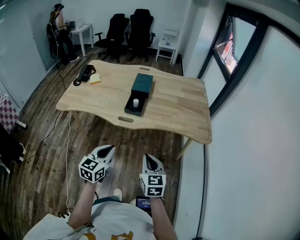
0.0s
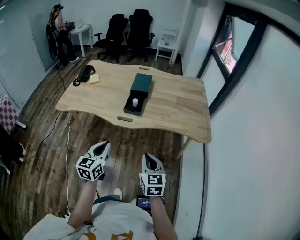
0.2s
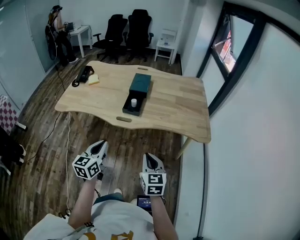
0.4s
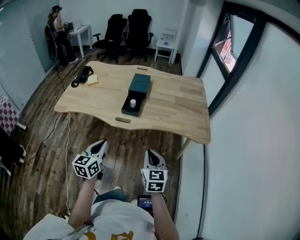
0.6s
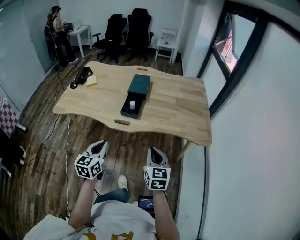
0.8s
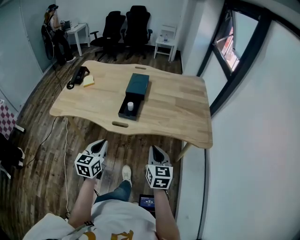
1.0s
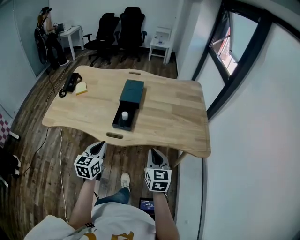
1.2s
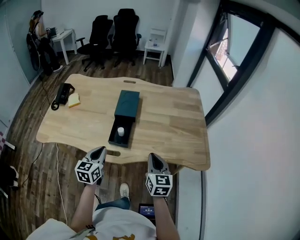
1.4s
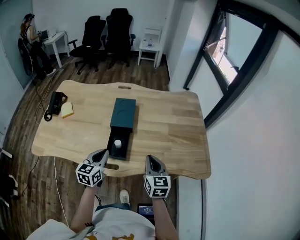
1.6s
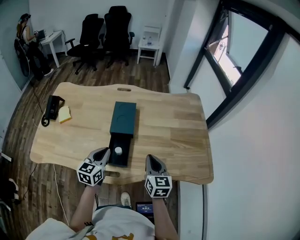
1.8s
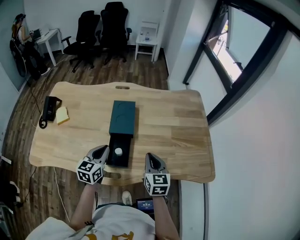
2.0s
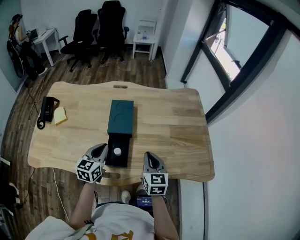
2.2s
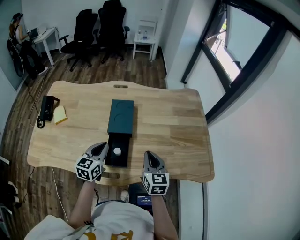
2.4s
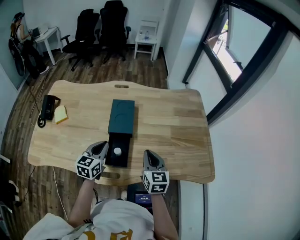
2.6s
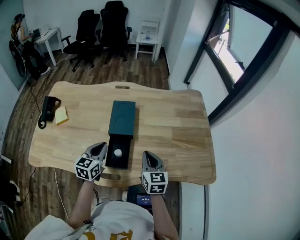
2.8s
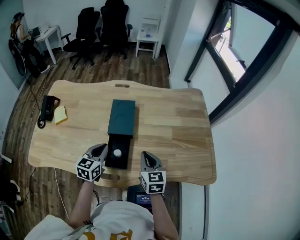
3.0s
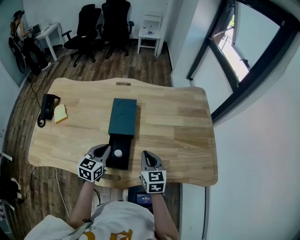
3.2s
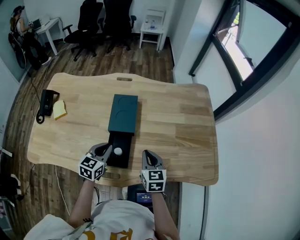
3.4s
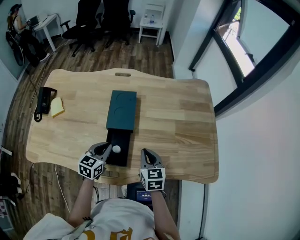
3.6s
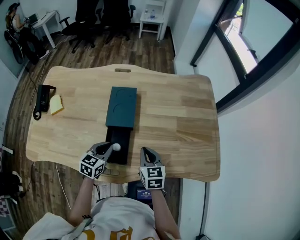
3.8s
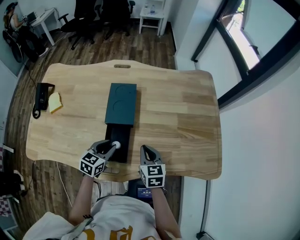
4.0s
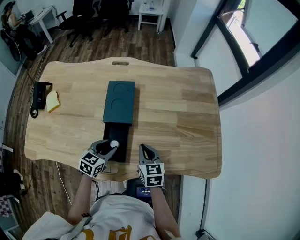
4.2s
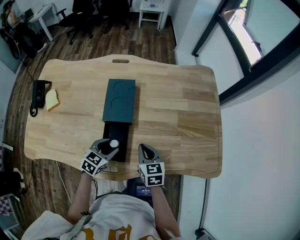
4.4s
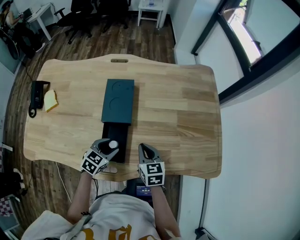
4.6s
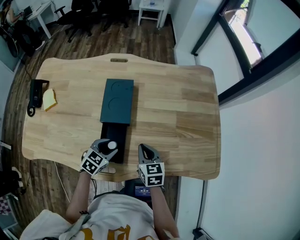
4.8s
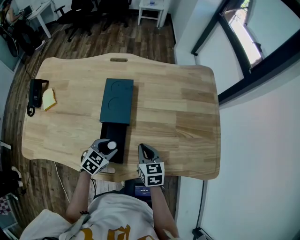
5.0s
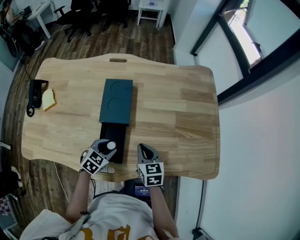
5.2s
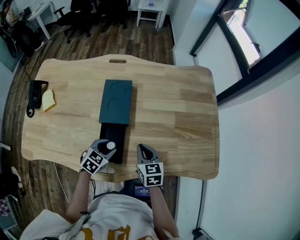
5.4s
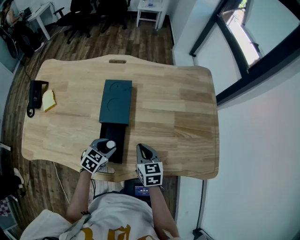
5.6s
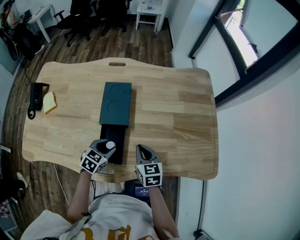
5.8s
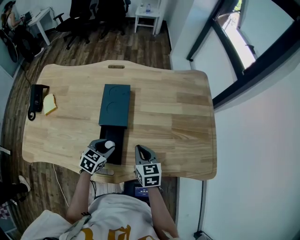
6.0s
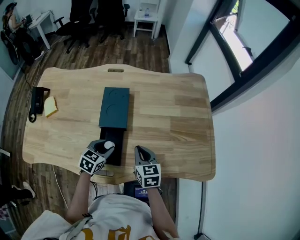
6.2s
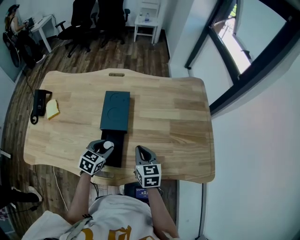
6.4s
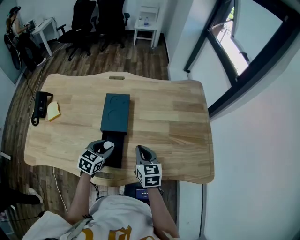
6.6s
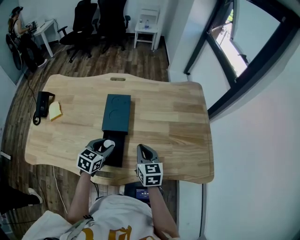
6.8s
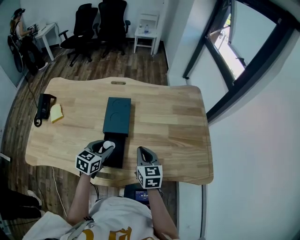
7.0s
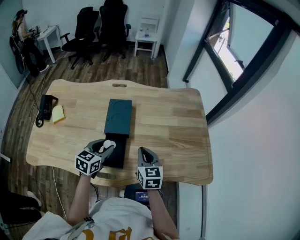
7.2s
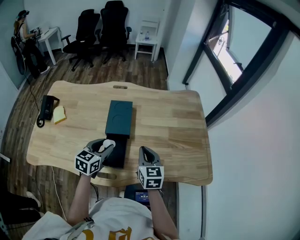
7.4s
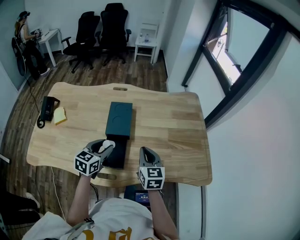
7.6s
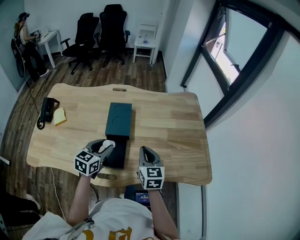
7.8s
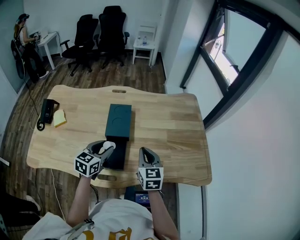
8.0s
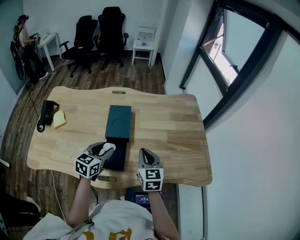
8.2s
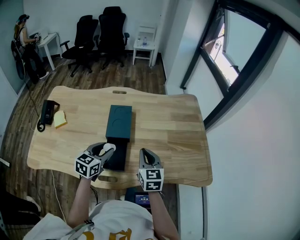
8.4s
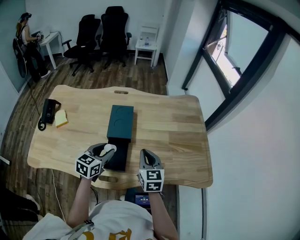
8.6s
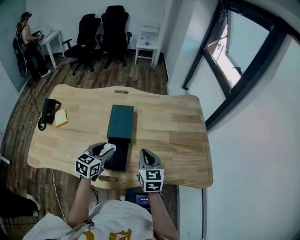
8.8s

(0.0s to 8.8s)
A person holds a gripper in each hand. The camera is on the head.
0.0s - 1.4s: Both grippers travel together forward, about 25 cm.
1.4s - 3.0s: Both grippers move forward, roughly 20 cm.
3.0s - 4.4s: The grippers both shift downward by roughly 10 cm. The left gripper changes its angle by approximately 30 degrees, and opens its fingers.
4.4s - 5.8s: The grippers stay close to where they were, moving slightly.
5.8s - 7.4s: Both grippers move upward, roughly 10 cm. The left gripper changes its angle by some 20 degrees.
7.4s - 8.8s: The grippers move only a little.

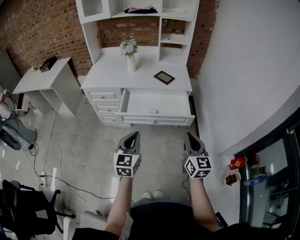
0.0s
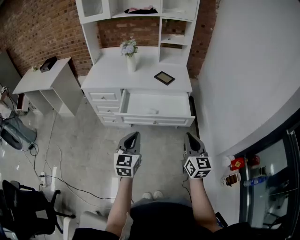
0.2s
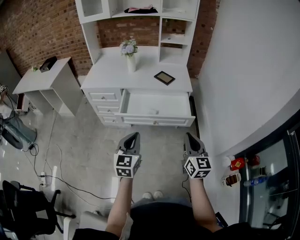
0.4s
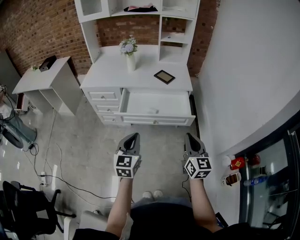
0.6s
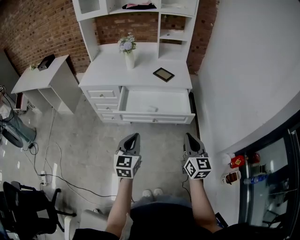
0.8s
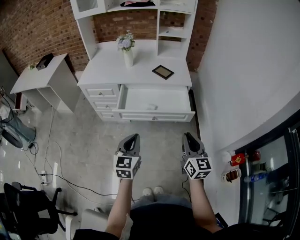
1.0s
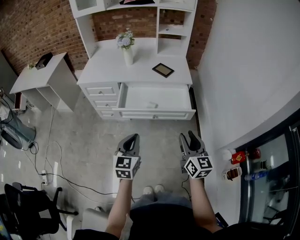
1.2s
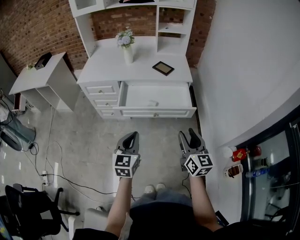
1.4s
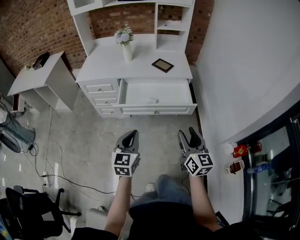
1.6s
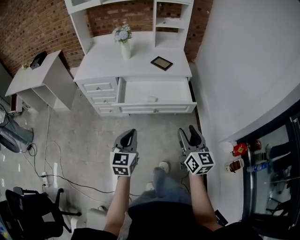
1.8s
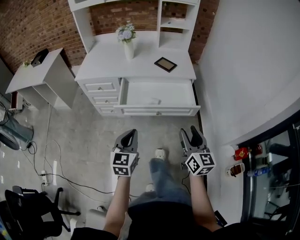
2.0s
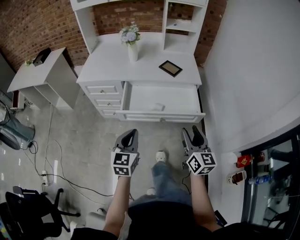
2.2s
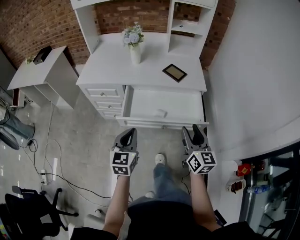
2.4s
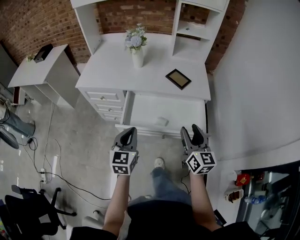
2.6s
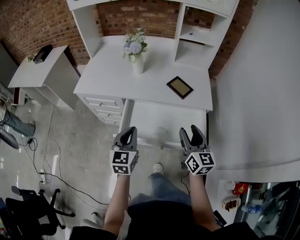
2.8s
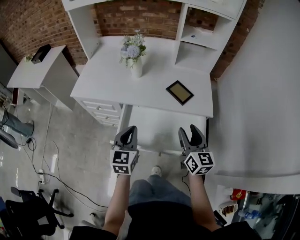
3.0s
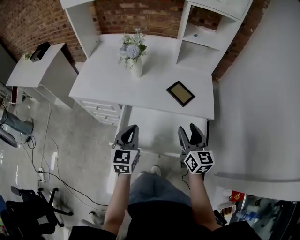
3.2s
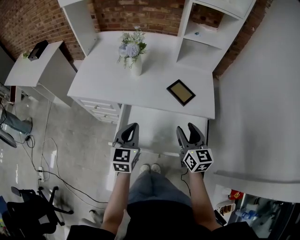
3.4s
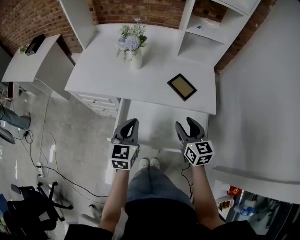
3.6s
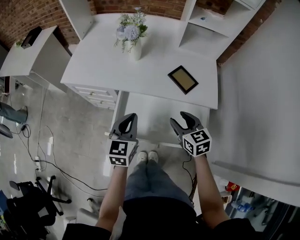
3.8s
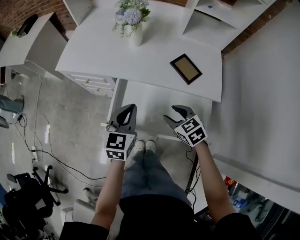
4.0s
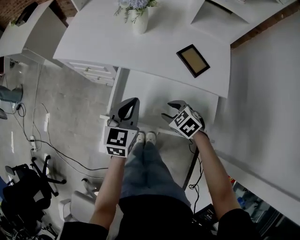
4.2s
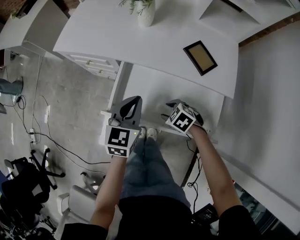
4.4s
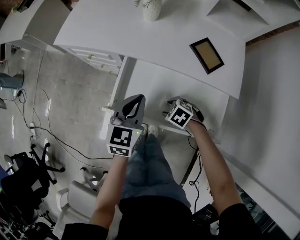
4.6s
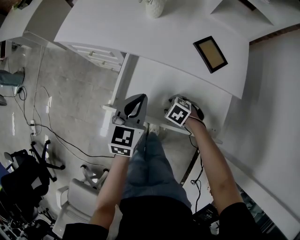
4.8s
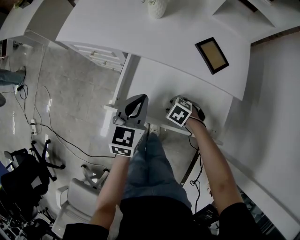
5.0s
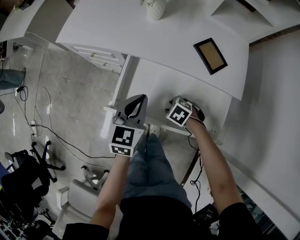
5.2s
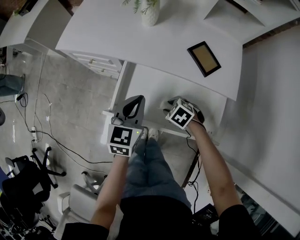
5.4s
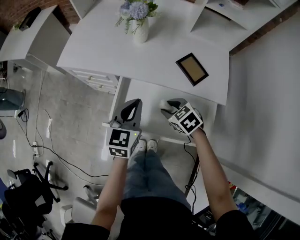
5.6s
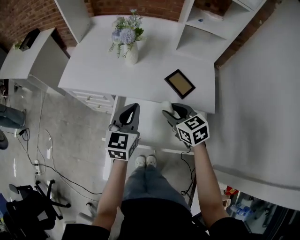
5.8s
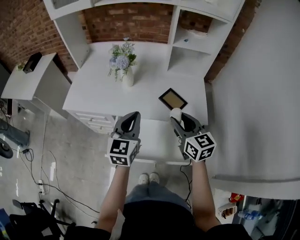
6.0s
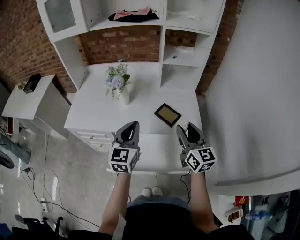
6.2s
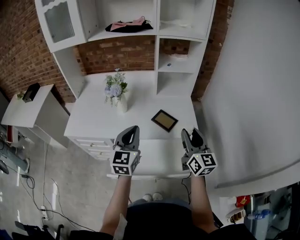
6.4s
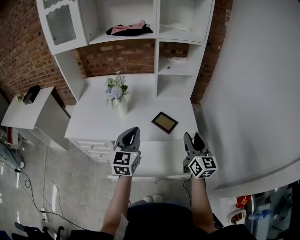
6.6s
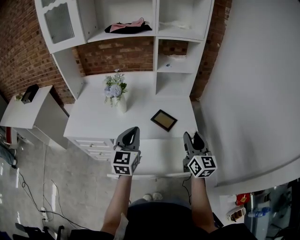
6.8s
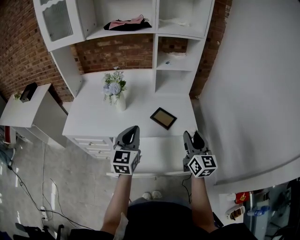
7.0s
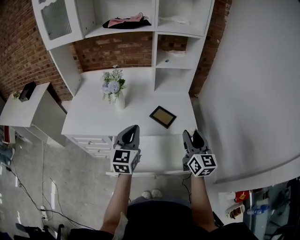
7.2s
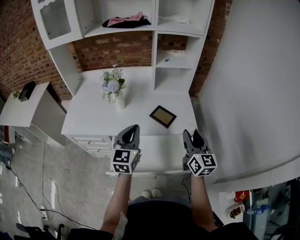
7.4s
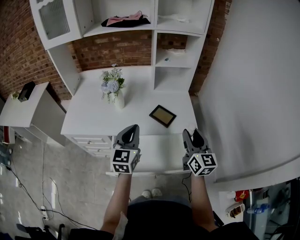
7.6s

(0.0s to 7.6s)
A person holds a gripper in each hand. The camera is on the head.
0.0s - 1.6s: The right gripper opens its fingers.
1.6s - 3.0s: The two grippers go about 35 cm forward.
3.0s - 4.6s: The right gripper heads downward, covering roughly 30 cm, and points its fingers about 60 degrees further downward. Meanwhile the left gripper heads downward, covering approximately 10 cm.
4.6s - 6.0s: The left gripper travels upward by approximately 15 cm; the right gripper shifts approximately 35 cm upward, and tips its fingers upward by approximately 60 degrees.
6.0s - 7.6s: The right gripper shifts approximately 10 cm to the right, and rotates roughly 30 degrees.

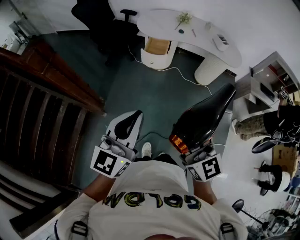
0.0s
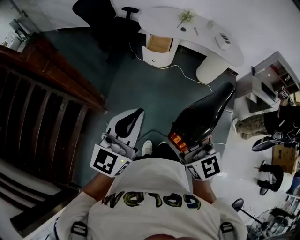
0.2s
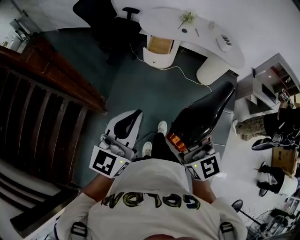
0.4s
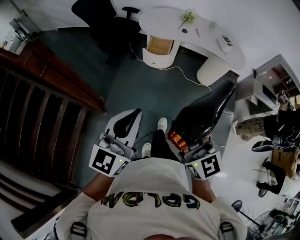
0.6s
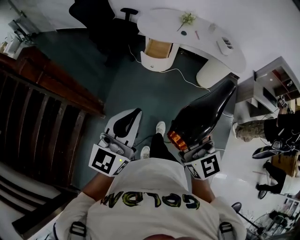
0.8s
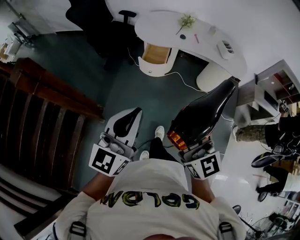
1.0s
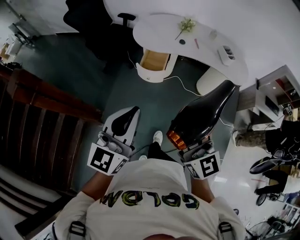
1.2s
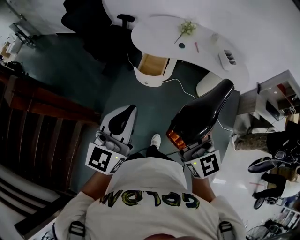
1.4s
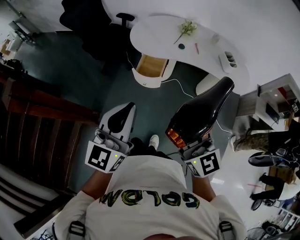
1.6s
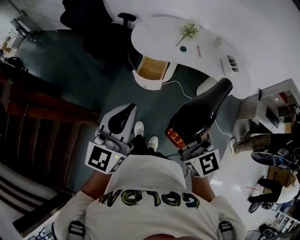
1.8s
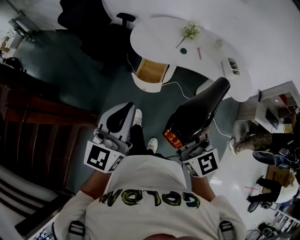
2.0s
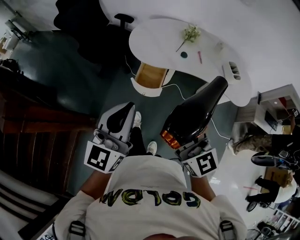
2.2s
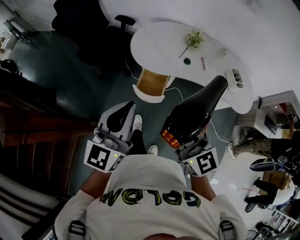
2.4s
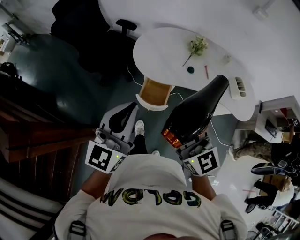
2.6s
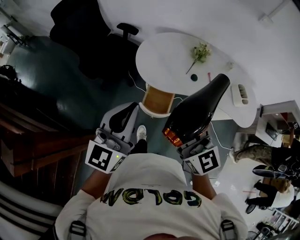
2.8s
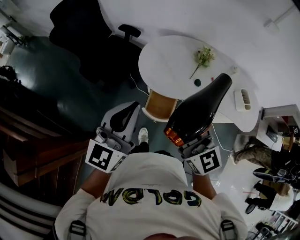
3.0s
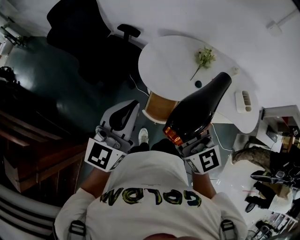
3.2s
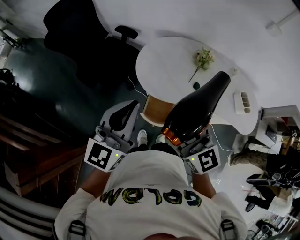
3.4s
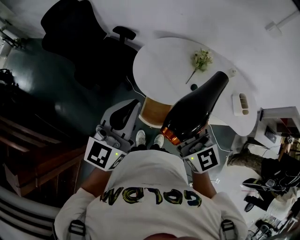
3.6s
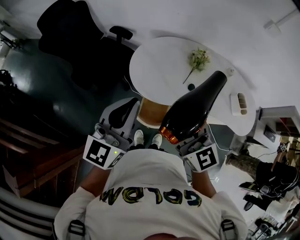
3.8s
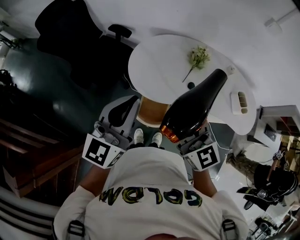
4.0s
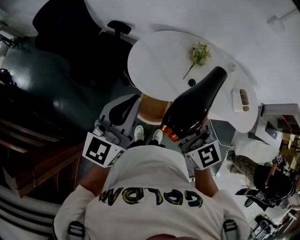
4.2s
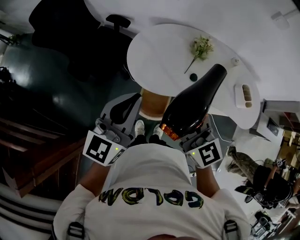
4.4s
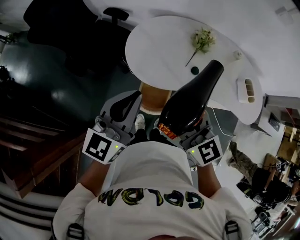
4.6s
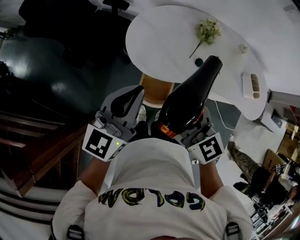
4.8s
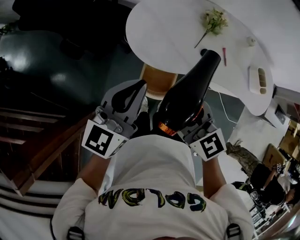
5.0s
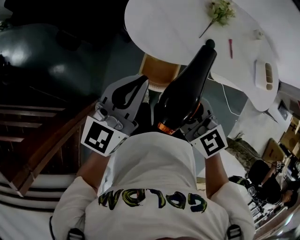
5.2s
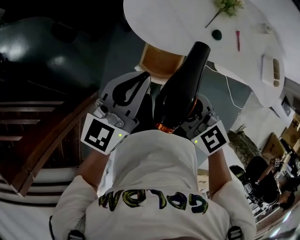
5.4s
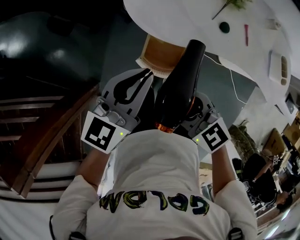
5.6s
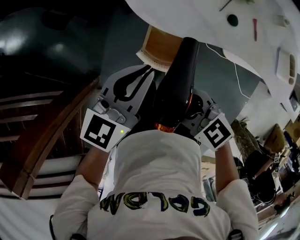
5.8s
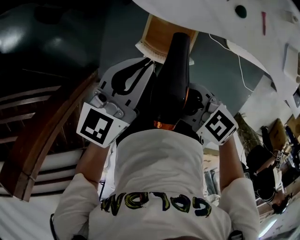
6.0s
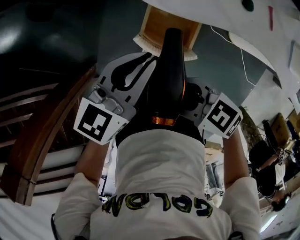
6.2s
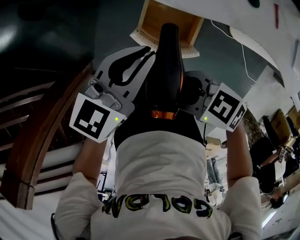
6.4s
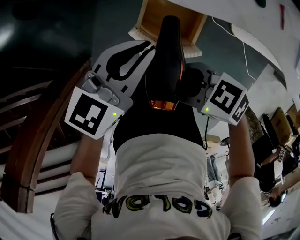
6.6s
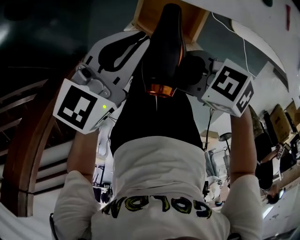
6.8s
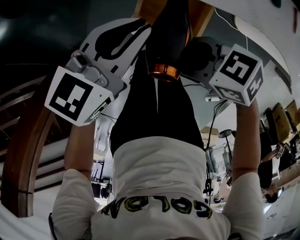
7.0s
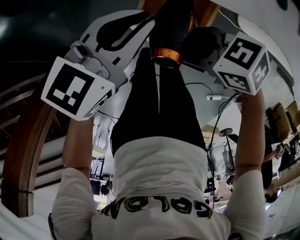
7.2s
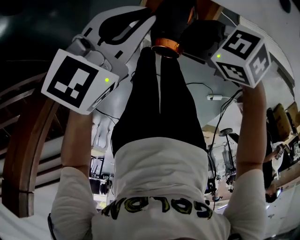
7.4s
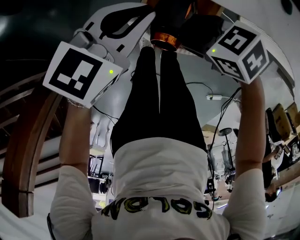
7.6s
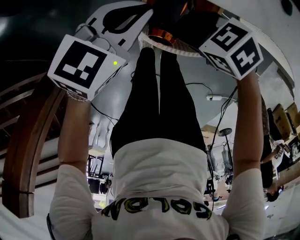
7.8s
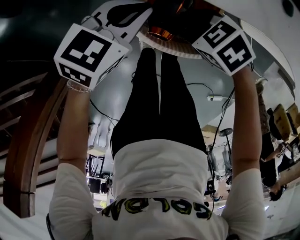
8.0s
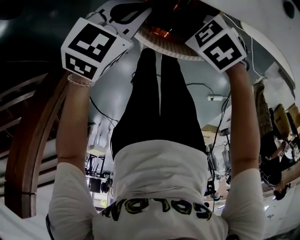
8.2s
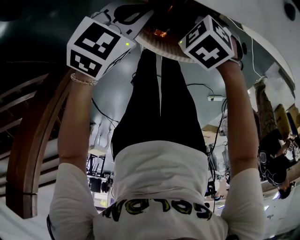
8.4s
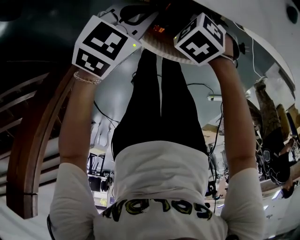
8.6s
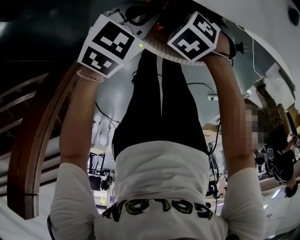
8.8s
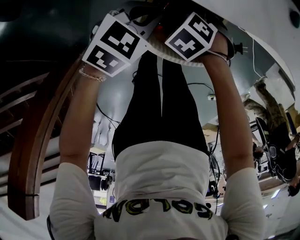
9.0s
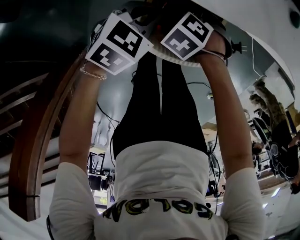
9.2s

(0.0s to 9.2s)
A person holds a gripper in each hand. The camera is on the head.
0.0s - 1.6s: The grippers both shift forward by roughly 30 cm.
1.6s - 3.0s: The grippers both shift forward by about 35 cm.
3.0s - 4.6s: The left gripper goes approximately 15 cm forward, to the right and downward. The right gripper travels downward and forward by roughly 10 cm.
4.6s - 6.2s: The grippers both shift downward by roughly 30 cm. The right gripper swivels about 60 degrees, while the left gripper changes its angle by some 30 degrees.
6.2s - 7.6s: The two grippers go some 15 cm downward.
7.6s - 9.2s: The left gripper shifts about 10 cm downward, and turns by approximately 20 degrees. Meanwhile the right gripper moves some 15 cm, and points its fingers roughly 40 degrees further downward.
